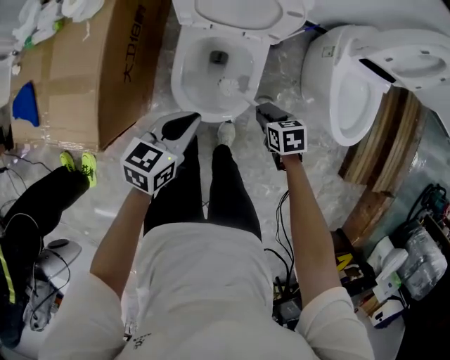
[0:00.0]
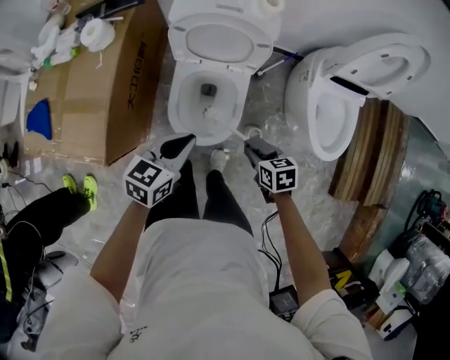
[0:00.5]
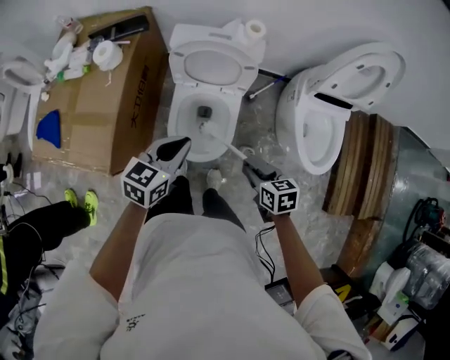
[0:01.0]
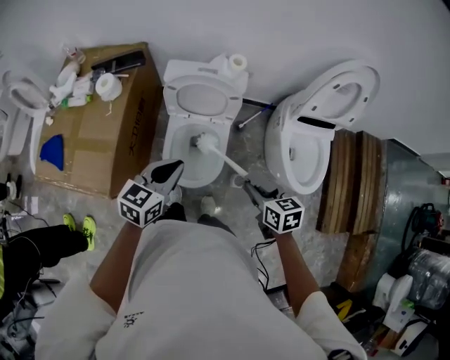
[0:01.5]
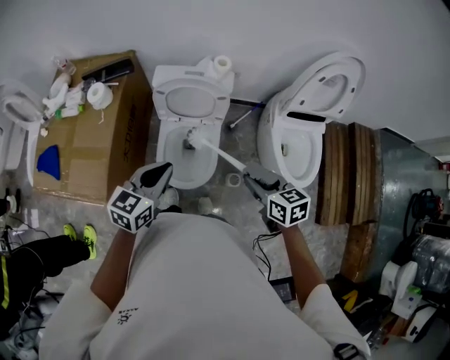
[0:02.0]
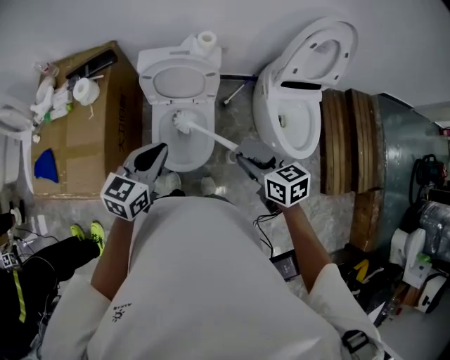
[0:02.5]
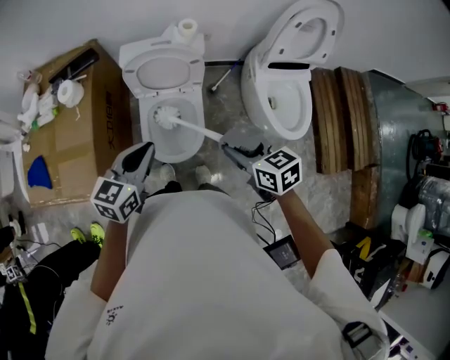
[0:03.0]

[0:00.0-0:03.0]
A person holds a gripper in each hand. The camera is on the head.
0:00.0 to 0:01.5: Both grippers move upward, roughly 25 cm. The right gripper swivels some 30 degrees.
0:01.5 to 0:03.0: The right gripper travels upward by some 5 cm.

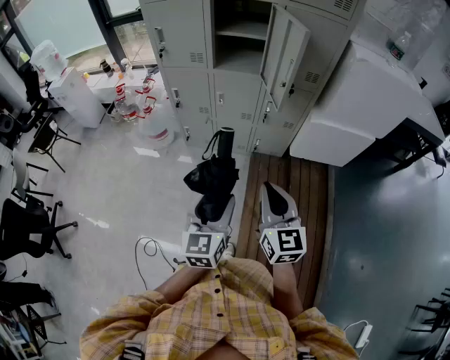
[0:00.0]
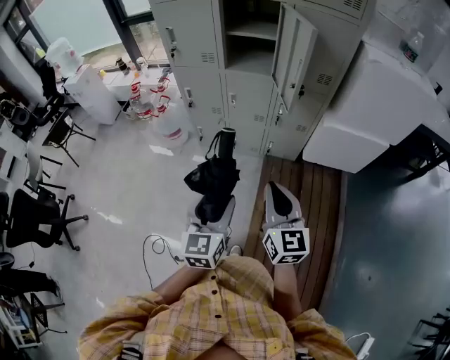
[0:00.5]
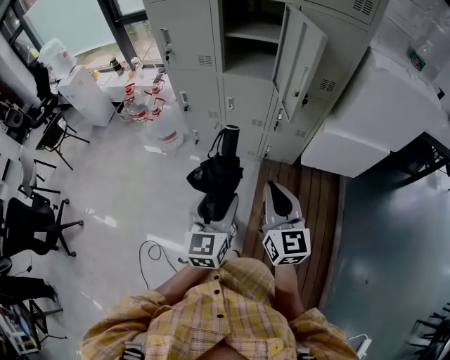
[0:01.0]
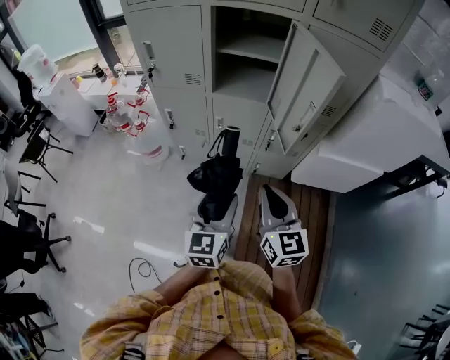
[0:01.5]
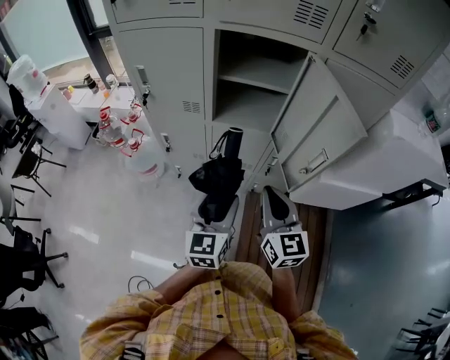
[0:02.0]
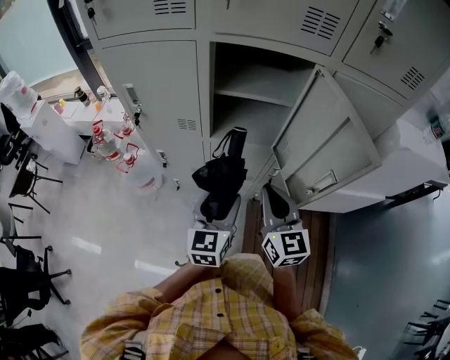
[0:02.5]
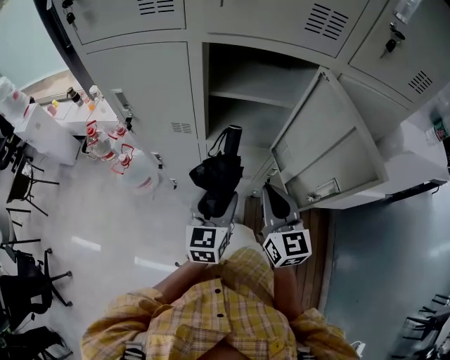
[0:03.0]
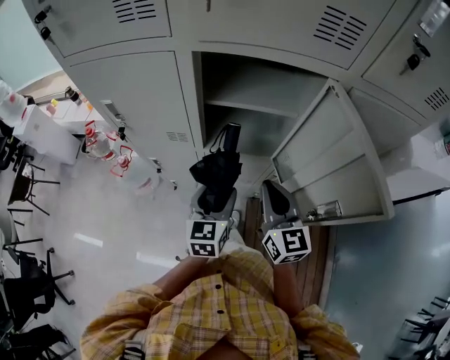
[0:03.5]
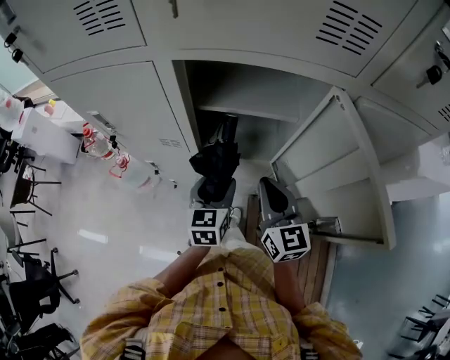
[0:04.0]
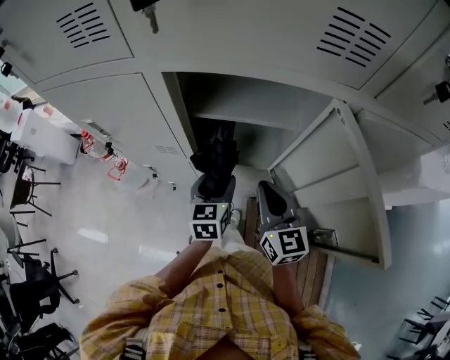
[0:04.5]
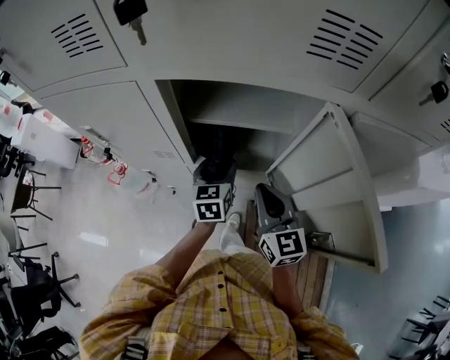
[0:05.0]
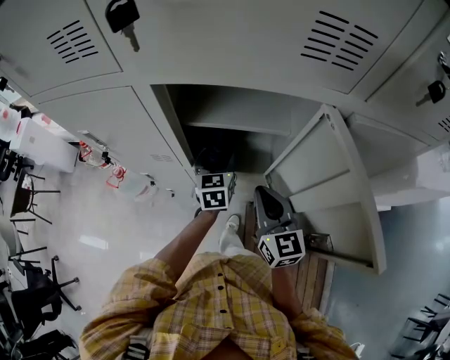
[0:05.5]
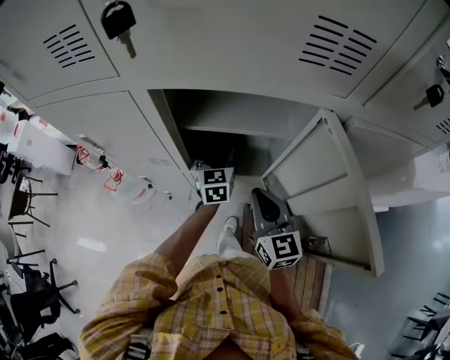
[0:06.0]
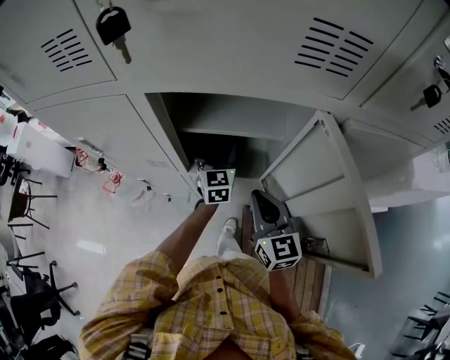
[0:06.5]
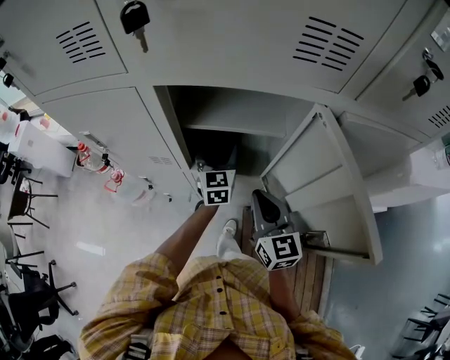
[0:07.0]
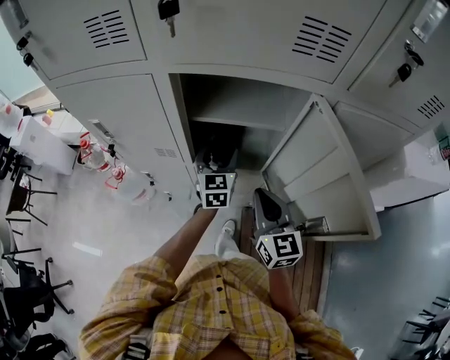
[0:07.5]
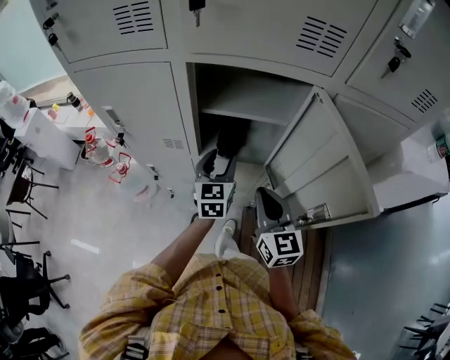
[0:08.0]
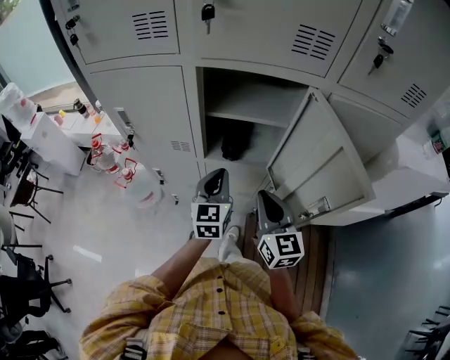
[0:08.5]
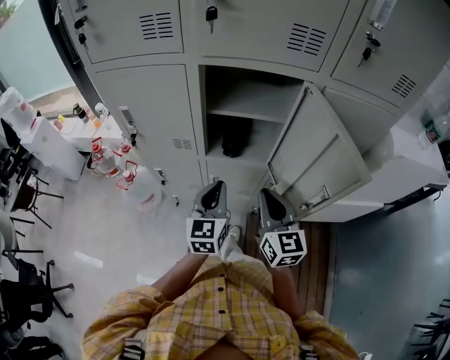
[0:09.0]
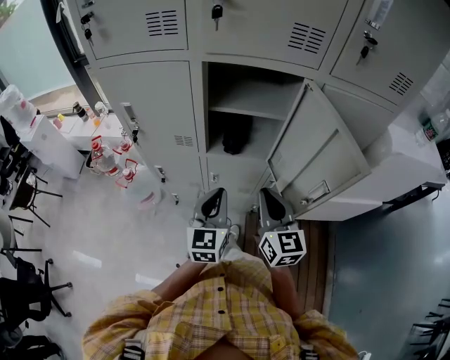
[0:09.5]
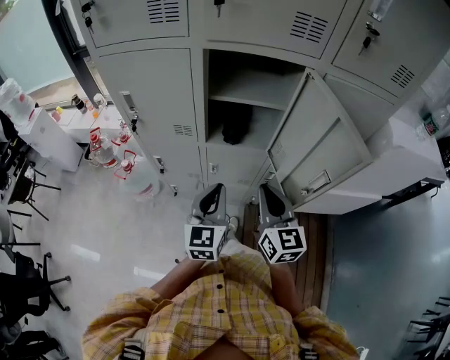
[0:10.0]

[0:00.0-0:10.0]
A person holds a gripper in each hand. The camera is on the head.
0:00.0 to 0:02.0: The two grippers go some 35 cm forward.
0:02.0 to 0:04.0: Both grippers move forward, roughly 20 cm.
0:04.0 to 0:06.0: The left gripper heads forward, covering approximately 15 cm.
0:06.0 to 0:08.0: The left gripper moves backward and upward, roughly 10 cm; the right gripper heads backward, covering some 5 cm.
0:08.0 to 0:10.0: The left gripper heads backward, covering approximately 20 cm, and closes its fingers. Meanwhile the right gripper heads backward, covering about 5 cm.

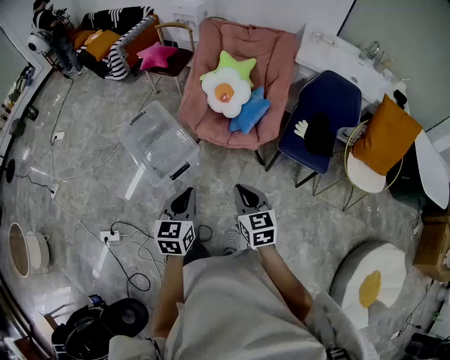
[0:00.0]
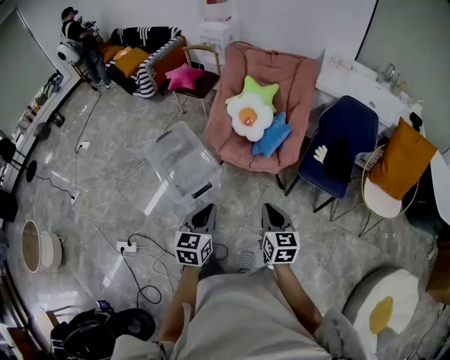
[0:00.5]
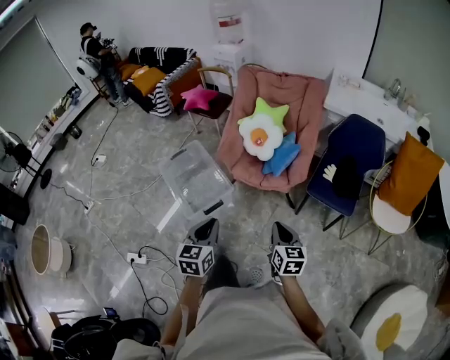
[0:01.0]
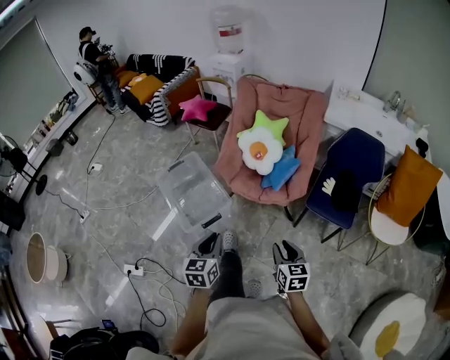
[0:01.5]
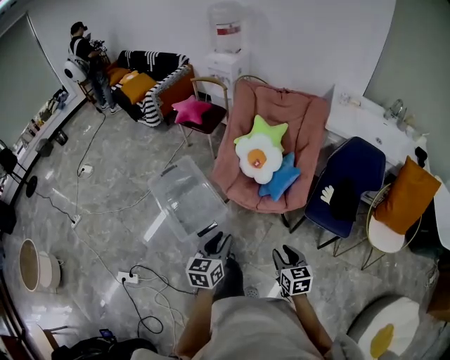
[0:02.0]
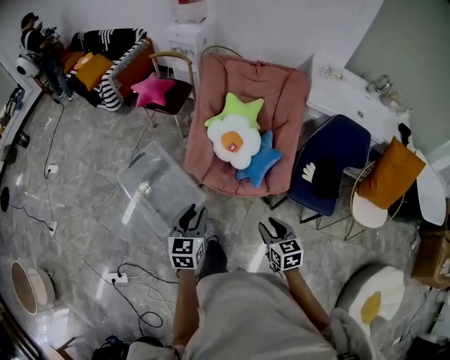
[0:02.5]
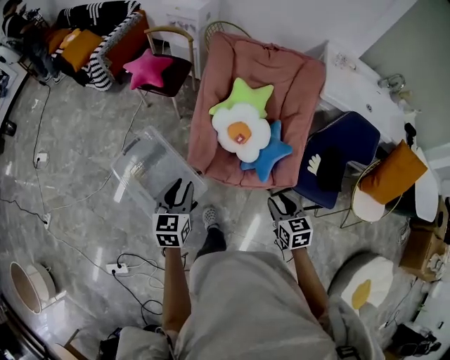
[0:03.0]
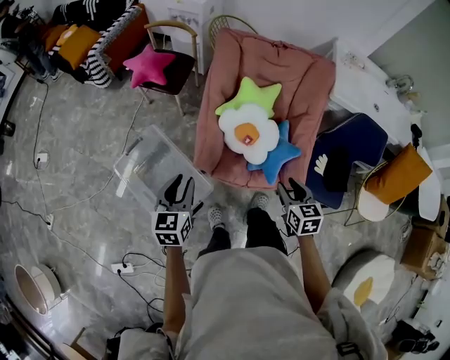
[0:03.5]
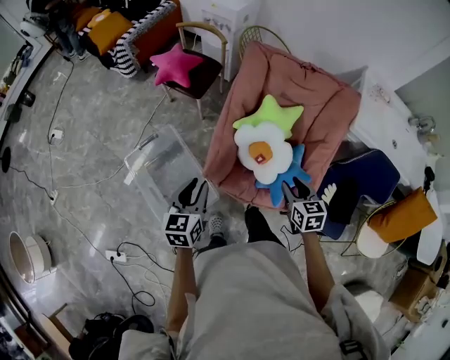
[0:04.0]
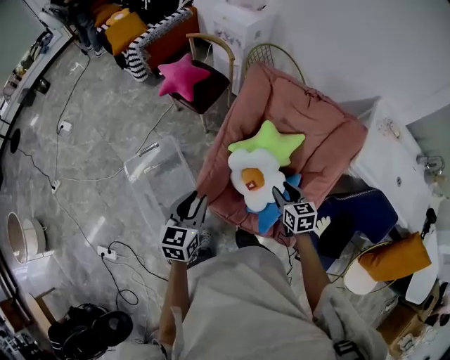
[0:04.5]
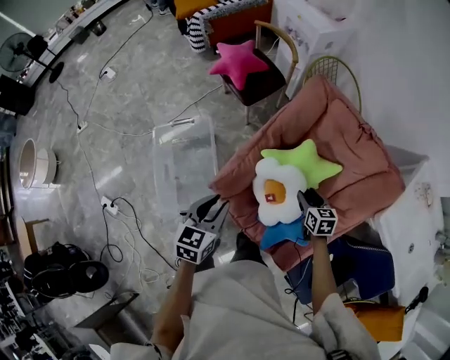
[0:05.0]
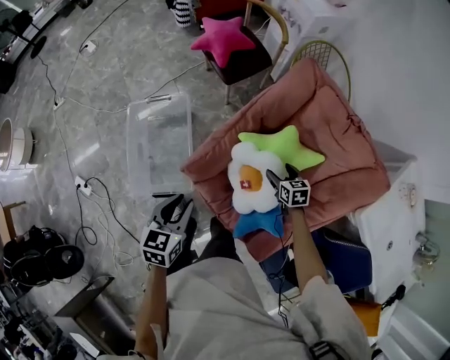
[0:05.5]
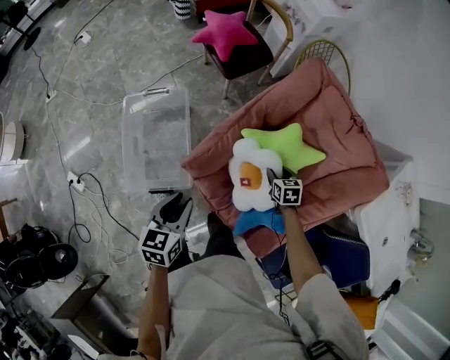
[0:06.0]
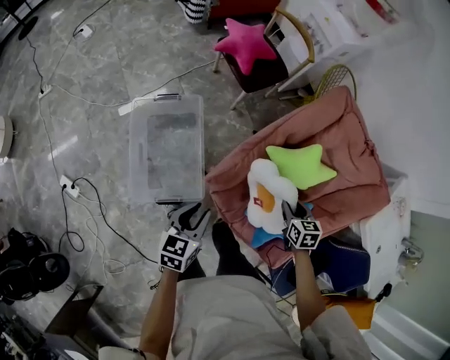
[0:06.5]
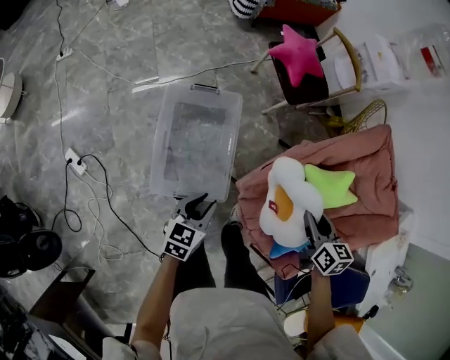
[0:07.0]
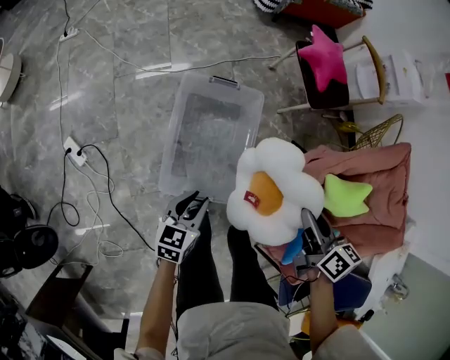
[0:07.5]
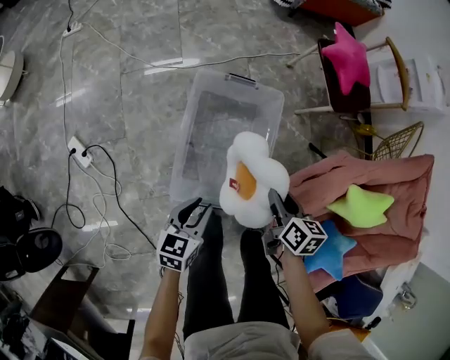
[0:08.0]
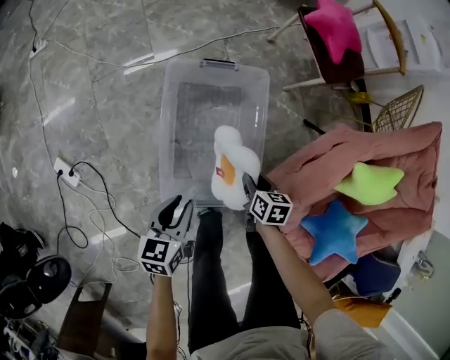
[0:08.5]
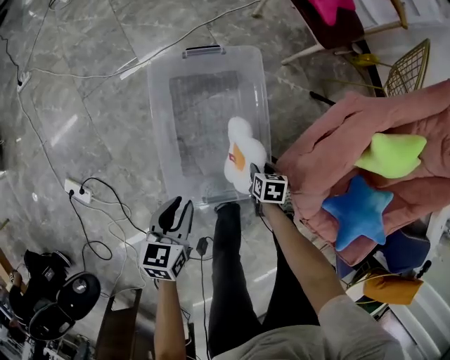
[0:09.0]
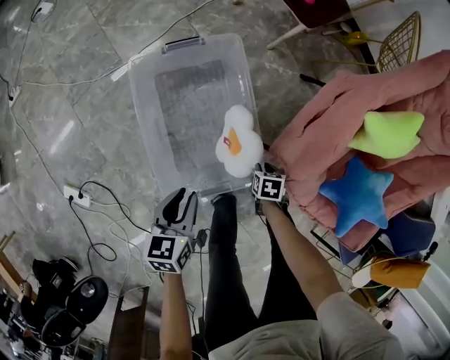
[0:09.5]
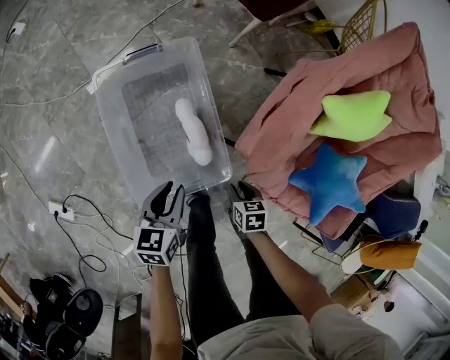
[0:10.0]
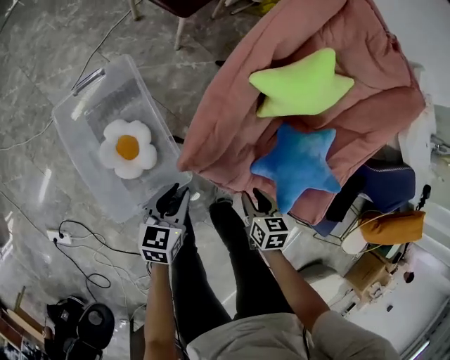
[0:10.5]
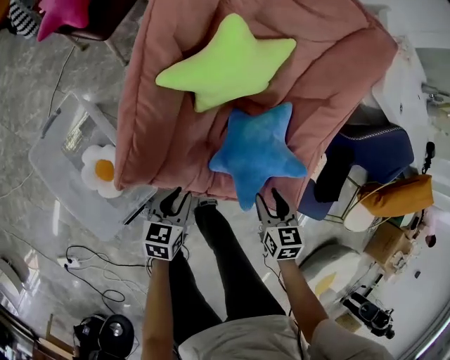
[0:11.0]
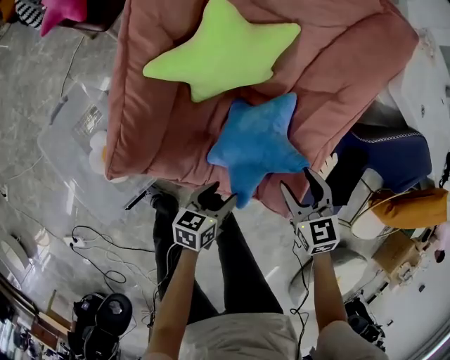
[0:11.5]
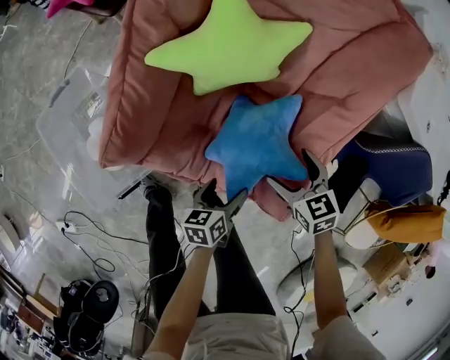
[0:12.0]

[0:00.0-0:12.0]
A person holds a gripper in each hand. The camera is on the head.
0:00.0 to 0:02.0: The left gripper shifts some 10 cm forward. Meanwhile the right gripper goes approximately 10 cm downward and forward.
0:02.0 to 0:04.0: Both grippers move forward, approximately 40 cm.
0:04.0 to 0:06.0: The left gripper goes some 10 cm downward, and turns by roughly 30 degrees. The right gripper changes place by about 30 cm, and turns by approximately 30 degrees.
0:06.0 to 0:08.0: The right gripper goes roughly 50 cm to the left. Meanwhile the left gripper moves to the left and downward, about 40 cm.
0:08.0 to 0:10.0: The right gripper goes approximately 20 cm downward, and rotates about 20 degrees, while the left gripper shifts by roughly 15 cm.
0:10.0 to 0:12.0: Both grippers are carried roughly 50 cm. The right gripper opens its fingers. The left gripper changes its angle by approximately 30 degrees, and opens its fingers.

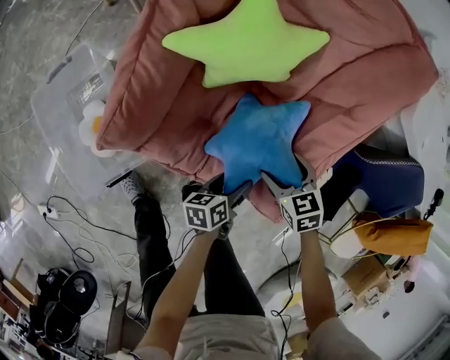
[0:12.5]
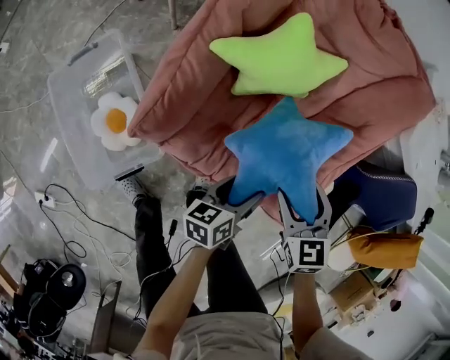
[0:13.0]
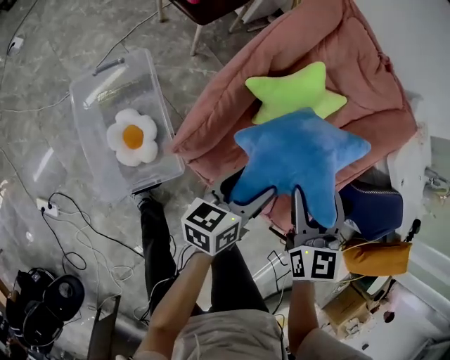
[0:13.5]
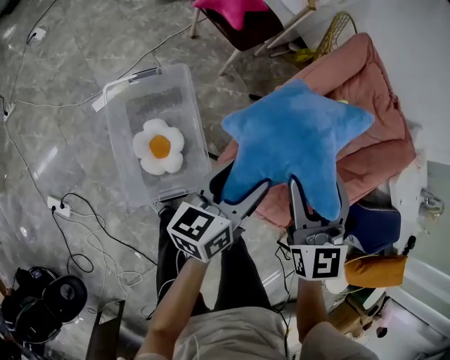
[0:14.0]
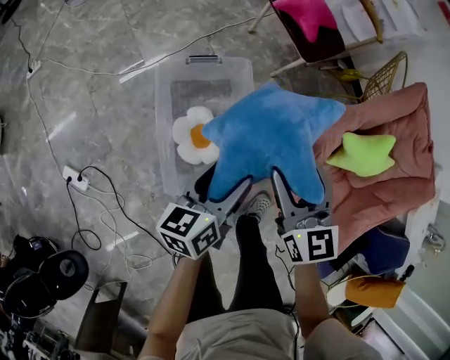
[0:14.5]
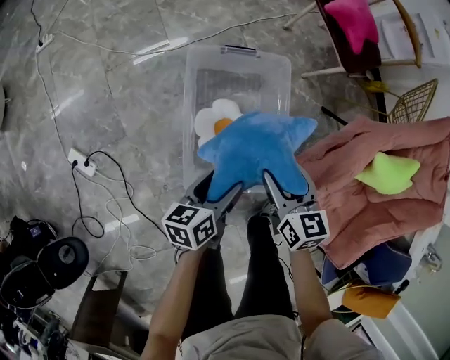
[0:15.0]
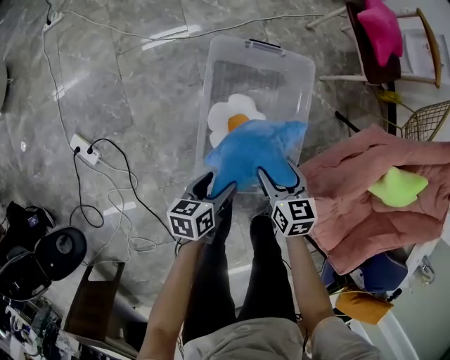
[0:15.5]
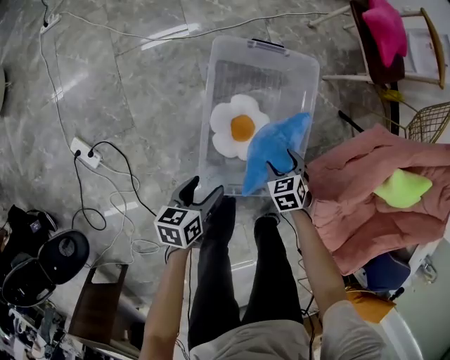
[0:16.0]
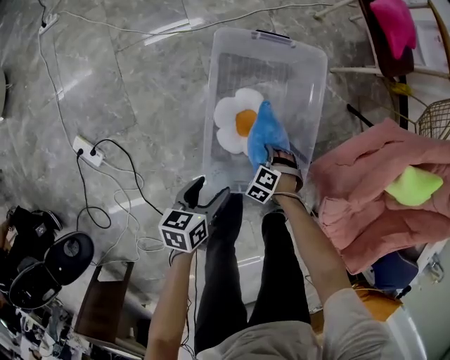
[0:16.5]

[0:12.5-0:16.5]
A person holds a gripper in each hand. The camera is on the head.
0:12.5 to 0:14.5: Both grippers are carried roughly 60 cm. The left gripper rotates about 40 degrees, while the right gripper angles its fingers upward, by some 30 degrees.
0:14.5 to 0:16.5: The right gripper moves downward, some 50 cm, and points its fingers approximately 60 degrees further downward, while the left gripper goes some 25 cm downward, and changes its angle by some 20 degrees.
